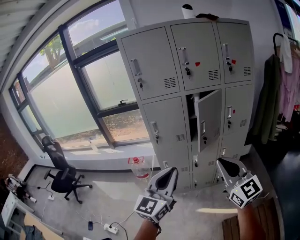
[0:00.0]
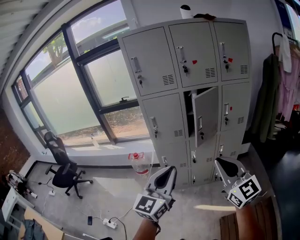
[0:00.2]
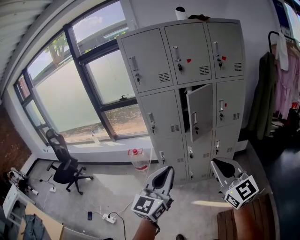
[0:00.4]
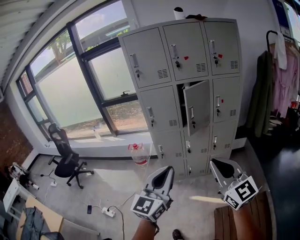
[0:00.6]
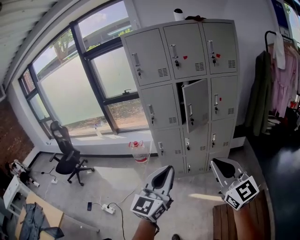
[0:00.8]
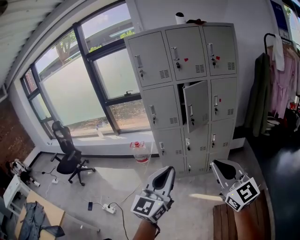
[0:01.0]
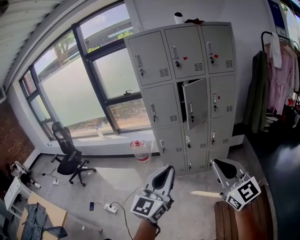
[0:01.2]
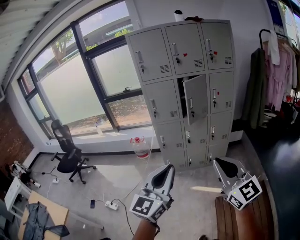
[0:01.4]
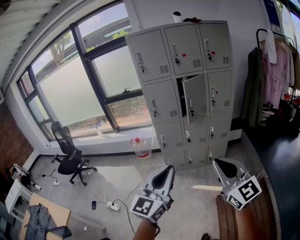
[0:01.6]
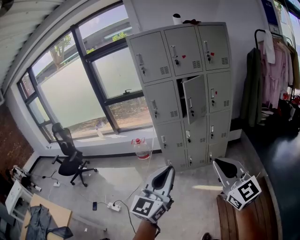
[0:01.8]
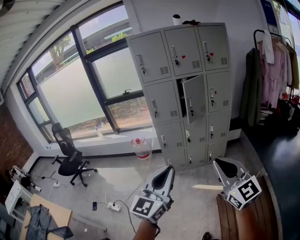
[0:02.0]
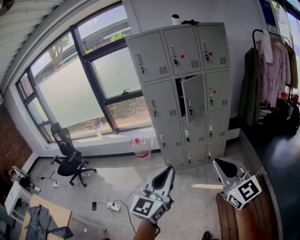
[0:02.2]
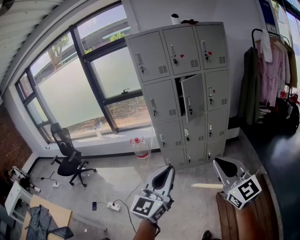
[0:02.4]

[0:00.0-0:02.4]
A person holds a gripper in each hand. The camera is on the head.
0.0 to 1.2 s: The grippers both shift backward by about 30 cm.
1.2 to 2.4 s: Both grippers move backward, some 10 cm.

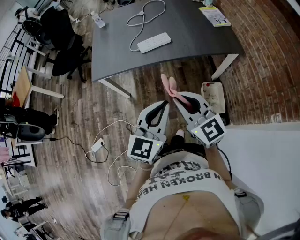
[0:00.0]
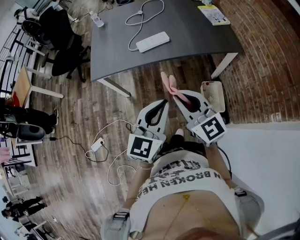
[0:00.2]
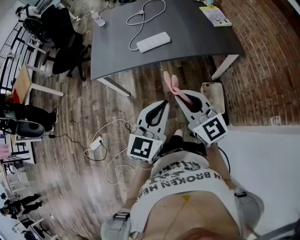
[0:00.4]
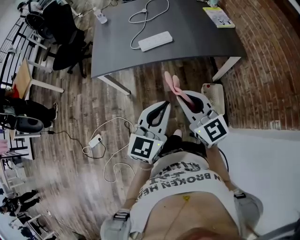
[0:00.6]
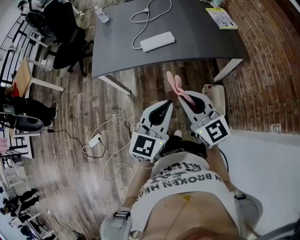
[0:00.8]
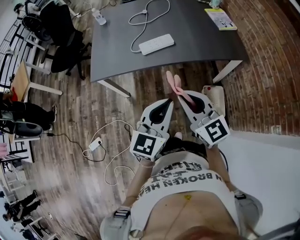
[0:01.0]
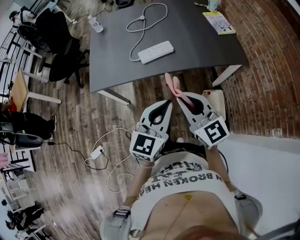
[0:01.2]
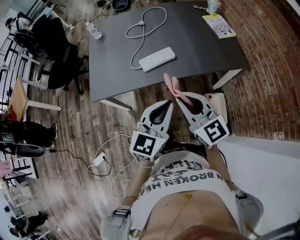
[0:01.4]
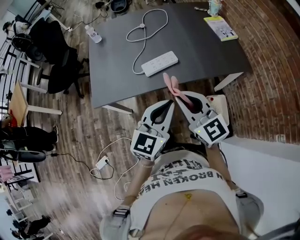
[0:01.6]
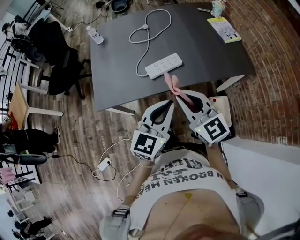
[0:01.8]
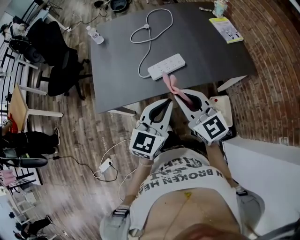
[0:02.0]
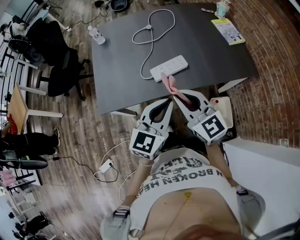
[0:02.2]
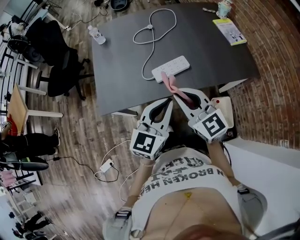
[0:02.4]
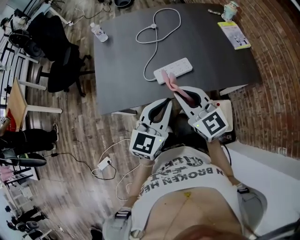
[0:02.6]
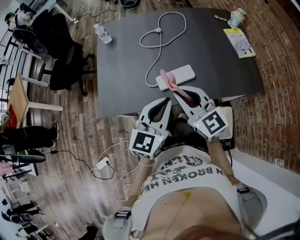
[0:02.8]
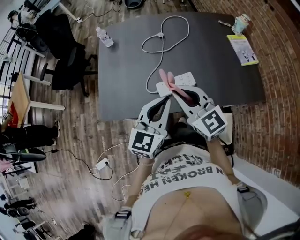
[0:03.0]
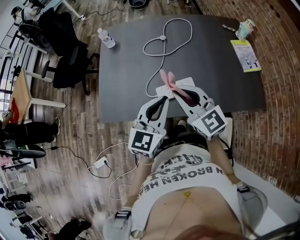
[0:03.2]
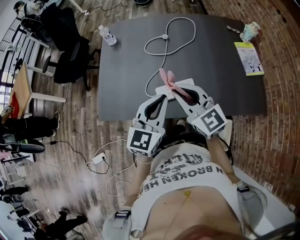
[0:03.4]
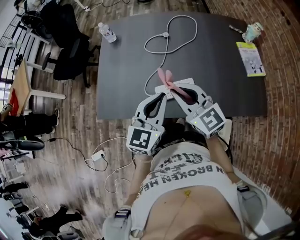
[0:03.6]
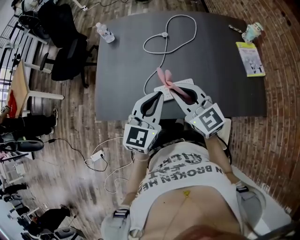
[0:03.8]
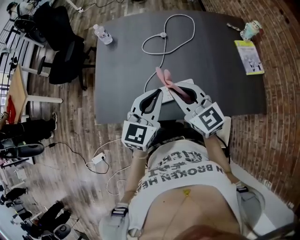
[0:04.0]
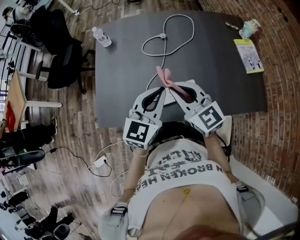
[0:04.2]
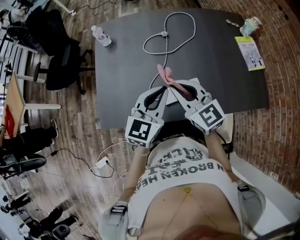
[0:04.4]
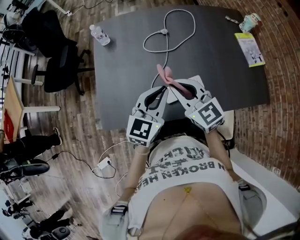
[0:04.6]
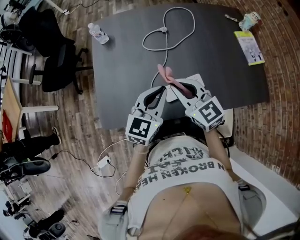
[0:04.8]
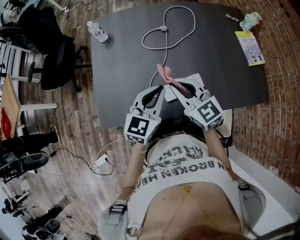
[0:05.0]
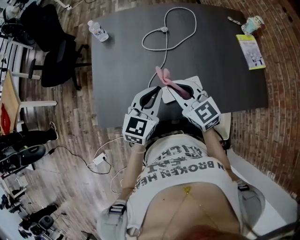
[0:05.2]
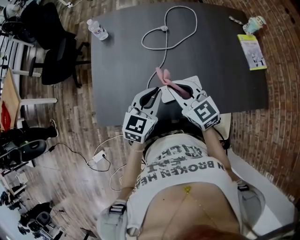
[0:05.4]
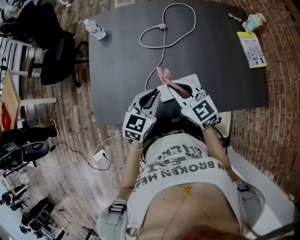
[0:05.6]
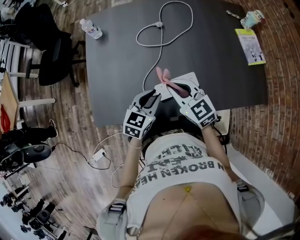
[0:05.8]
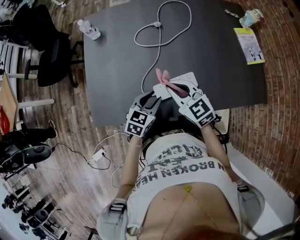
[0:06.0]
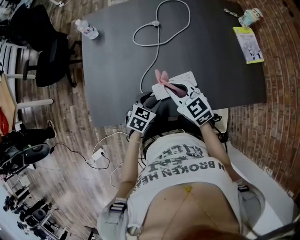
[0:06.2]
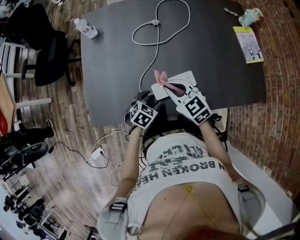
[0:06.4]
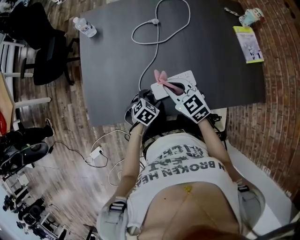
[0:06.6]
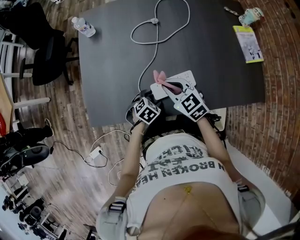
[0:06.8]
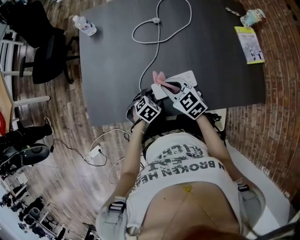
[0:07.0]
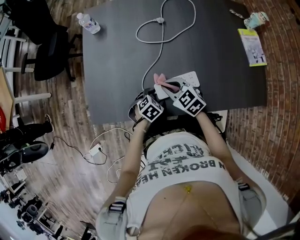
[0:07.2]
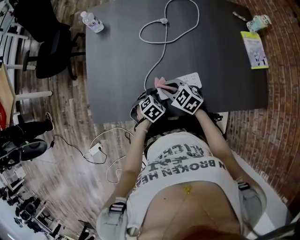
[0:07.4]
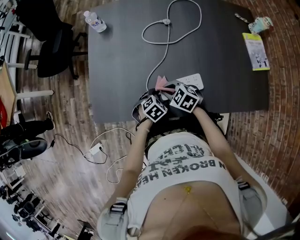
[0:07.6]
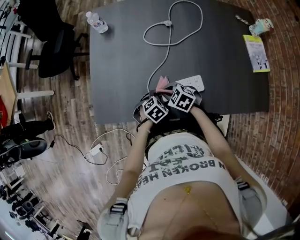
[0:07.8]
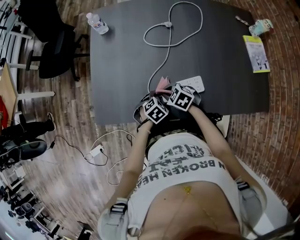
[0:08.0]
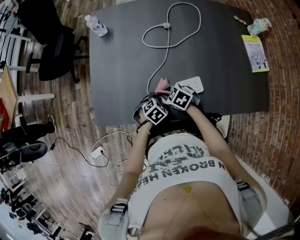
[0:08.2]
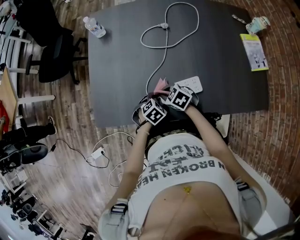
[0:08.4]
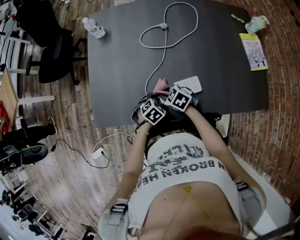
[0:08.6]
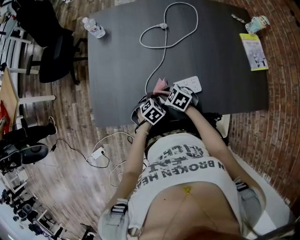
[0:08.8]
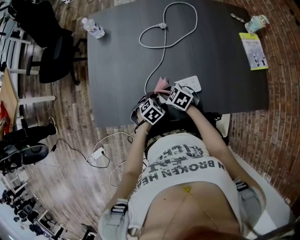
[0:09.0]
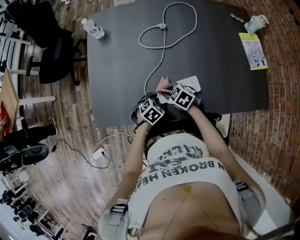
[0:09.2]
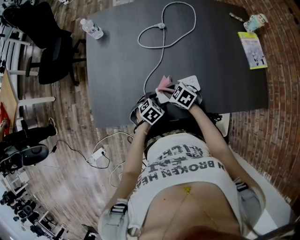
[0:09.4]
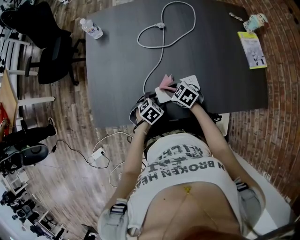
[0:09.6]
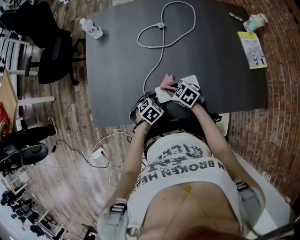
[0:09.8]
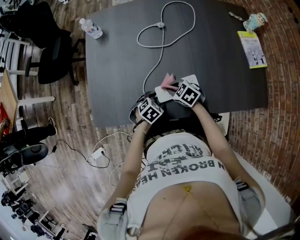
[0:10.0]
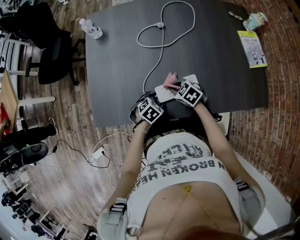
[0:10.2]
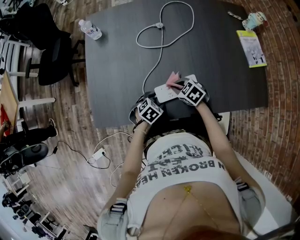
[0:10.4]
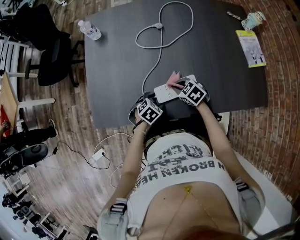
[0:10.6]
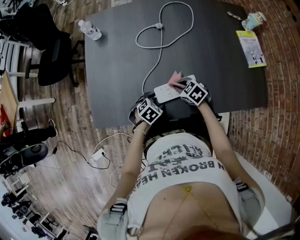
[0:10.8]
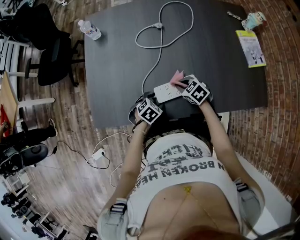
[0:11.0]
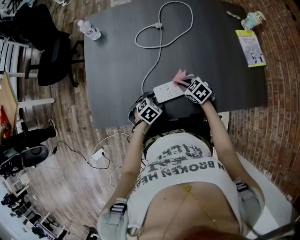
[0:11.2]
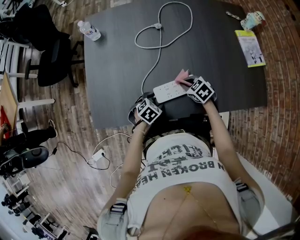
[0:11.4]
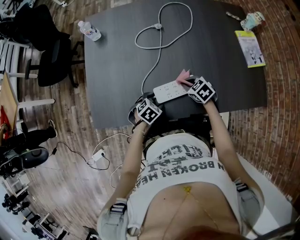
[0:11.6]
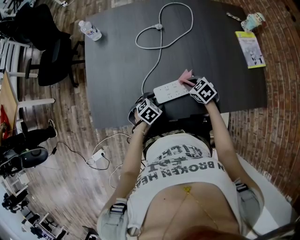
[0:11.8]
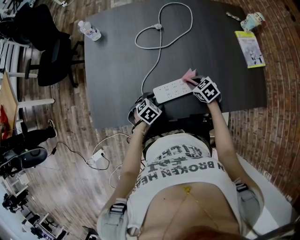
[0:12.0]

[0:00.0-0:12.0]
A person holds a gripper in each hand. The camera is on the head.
0.0 to 1.6 s: Both grippers move forward, some 20 cm.
1.6 to 3.0 s: Both grippers travel together forward, roughly 20 cm.
3.0 to 4.4 s: Both grippers travel together forward, roughly 10 cm.
4.4 to 6.0 s: The left gripper moves downward, approximately 20 cm, turns by approximately 30 degrees, and opens up; the right gripper goes approximately 10 cm downward.
6.0 to 7.6 s: The grippers both shift downward by about 15 cm. The left gripper turns by about 30 degrees, and opens, while the right gripper changes its angle by roughly 40 degrees.
7.6 to 9.0 s: There are only small adjustments of the grippers.
9.0 to 10.4 s: The right gripper ends up approximately 10 cm from where it was.
10.4 to 12.0 s: The right gripper changes place by roughly 10 cm.

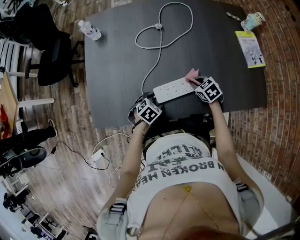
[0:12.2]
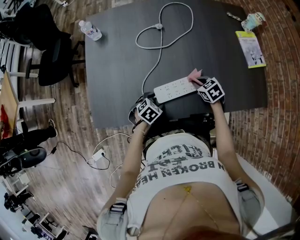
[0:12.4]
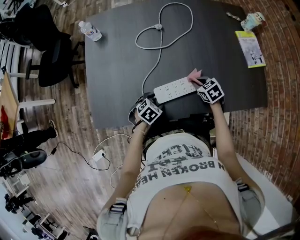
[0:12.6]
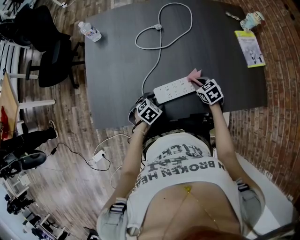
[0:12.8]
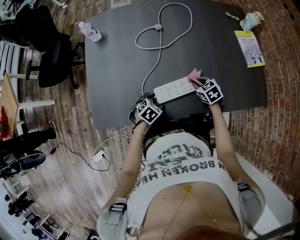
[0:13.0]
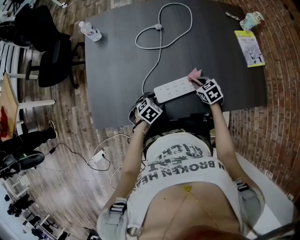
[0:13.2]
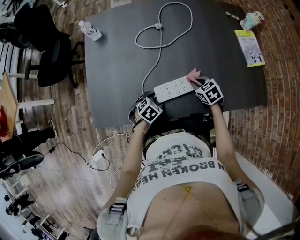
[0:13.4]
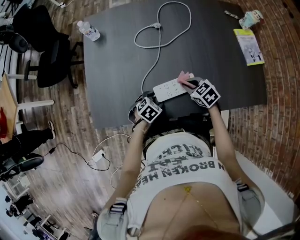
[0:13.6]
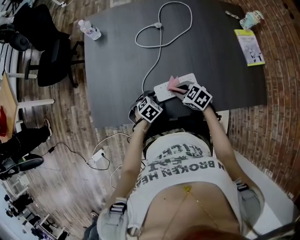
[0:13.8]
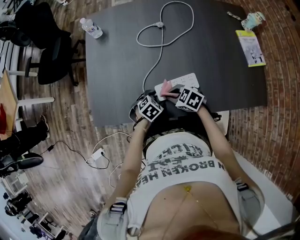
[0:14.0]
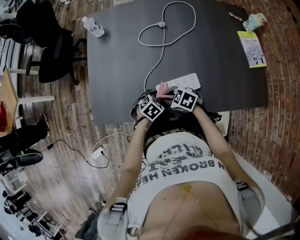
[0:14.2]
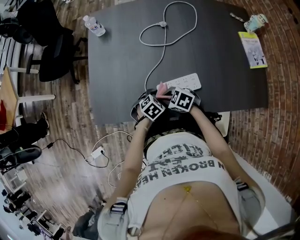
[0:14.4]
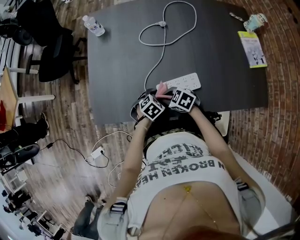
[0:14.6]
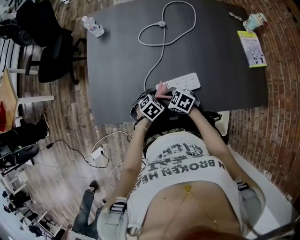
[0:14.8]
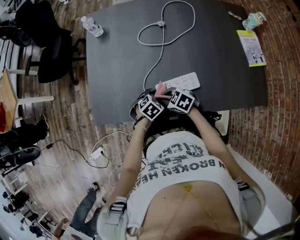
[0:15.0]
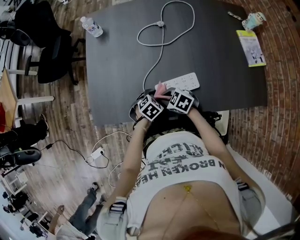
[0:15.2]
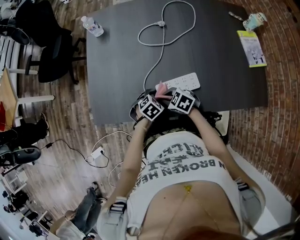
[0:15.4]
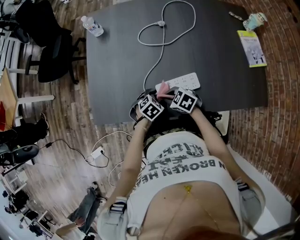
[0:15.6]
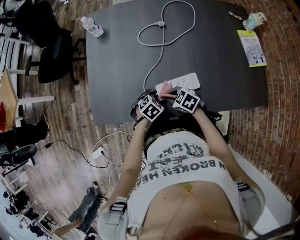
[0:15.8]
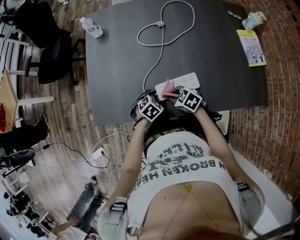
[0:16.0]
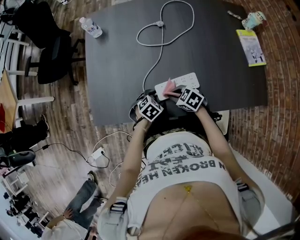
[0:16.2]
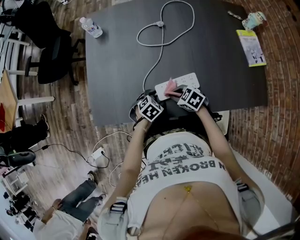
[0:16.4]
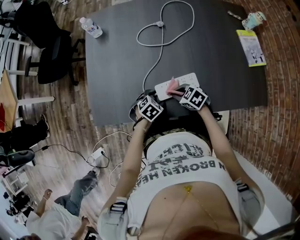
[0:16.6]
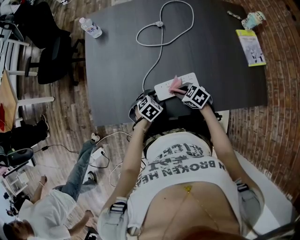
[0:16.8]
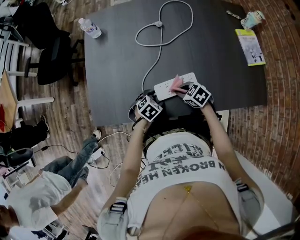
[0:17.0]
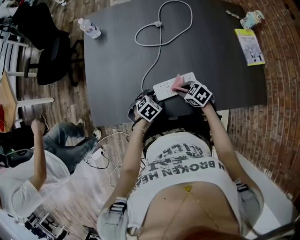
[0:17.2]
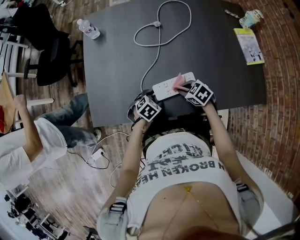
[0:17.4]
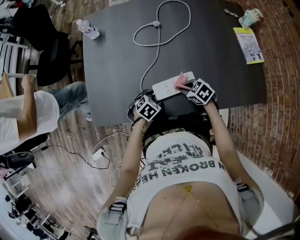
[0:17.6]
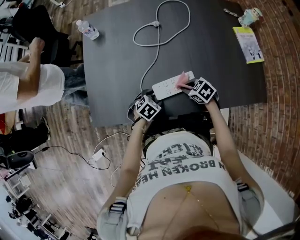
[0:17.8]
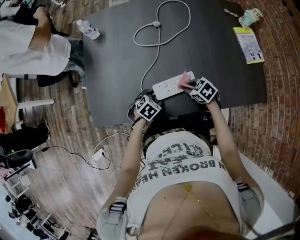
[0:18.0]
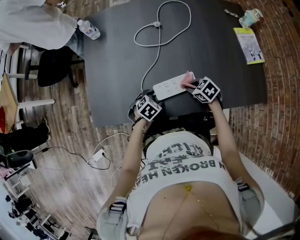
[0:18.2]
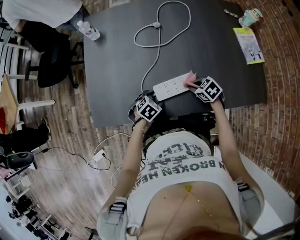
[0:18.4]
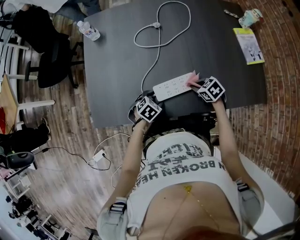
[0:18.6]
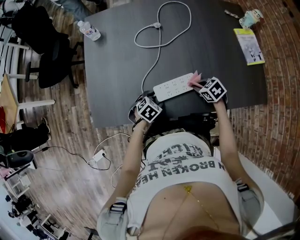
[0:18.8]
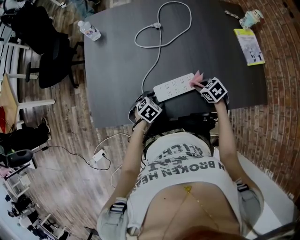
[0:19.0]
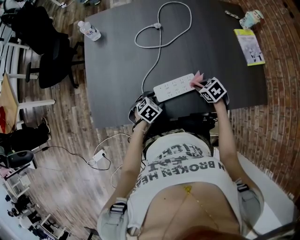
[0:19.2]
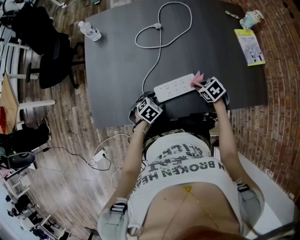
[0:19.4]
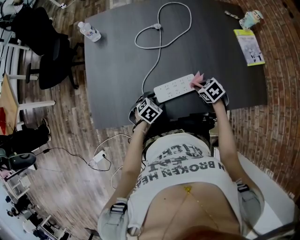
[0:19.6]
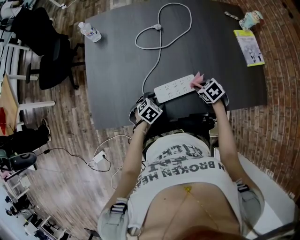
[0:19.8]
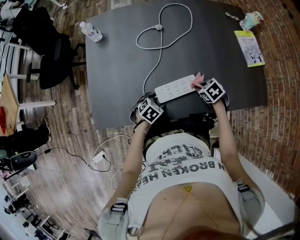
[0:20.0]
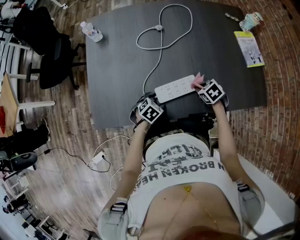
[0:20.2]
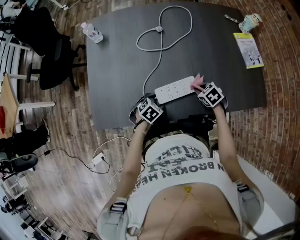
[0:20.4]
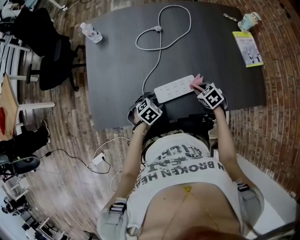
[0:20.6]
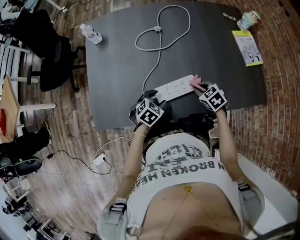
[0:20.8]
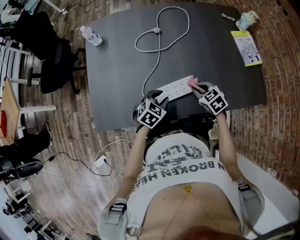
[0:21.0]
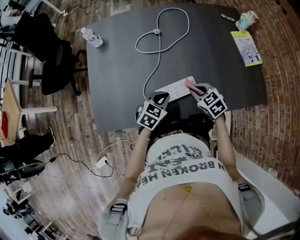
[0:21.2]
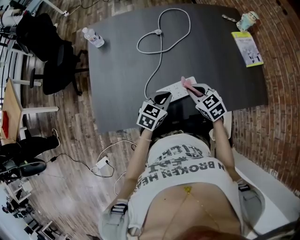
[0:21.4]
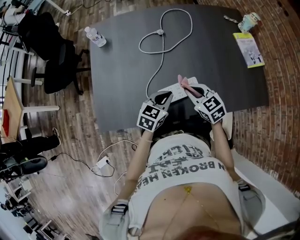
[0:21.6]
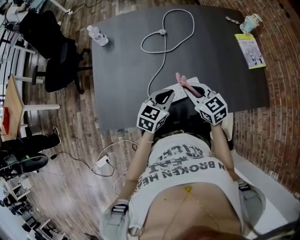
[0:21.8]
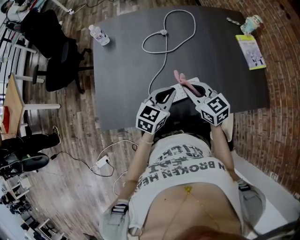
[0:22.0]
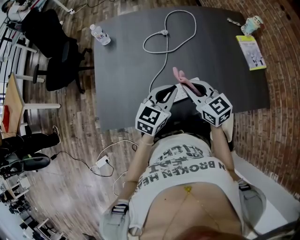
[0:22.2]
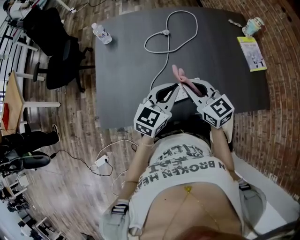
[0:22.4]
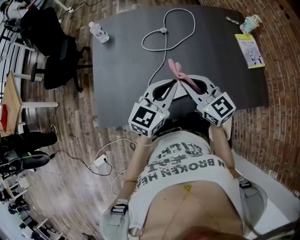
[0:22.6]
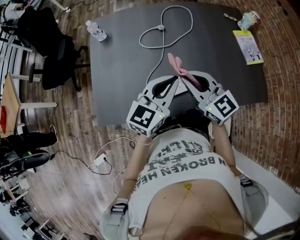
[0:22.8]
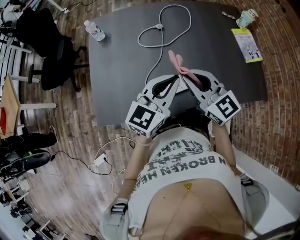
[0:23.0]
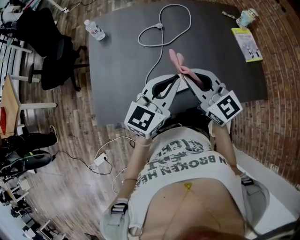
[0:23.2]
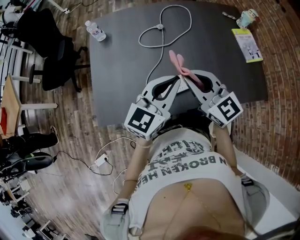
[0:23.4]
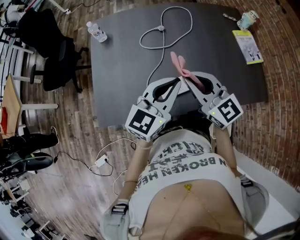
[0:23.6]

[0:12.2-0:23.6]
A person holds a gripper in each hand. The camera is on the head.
12.2 to 13.6 s: The right gripper moves some 5 cm.
13.6 to 15.0 s: The right gripper ends up approximately 15 cm from where it was, and rotates approximately 20 degrees.
15.0 to 16.4 s: The right gripper shifts by approximately 5 cm.
16.4 to 17.8 s: The right gripper shifts by about 10 cm.
17.8 to 19.4 s: The right gripper ends up roughly 5 cm from where it was.
19.4 to 20.8 s: The left gripper heads upward, covering about 5 cm.
20.8 to 22.2 s: The right gripper travels upward and to the left by roughly 20 cm, and tips its fingers upward by roughly 40 degrees. The left gripper shifts approximately 20 cm upward, points its fingers about 40 degrees further upward, and closes its fingers.
22.2 to 23.6 s: Both grippers travel together upward, about 10 cm.
